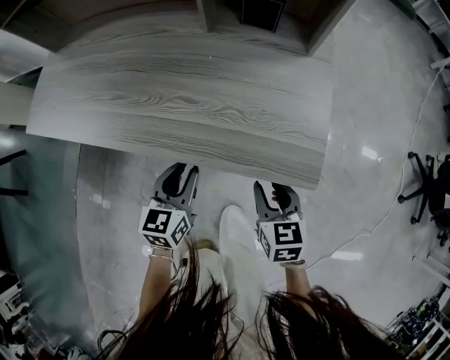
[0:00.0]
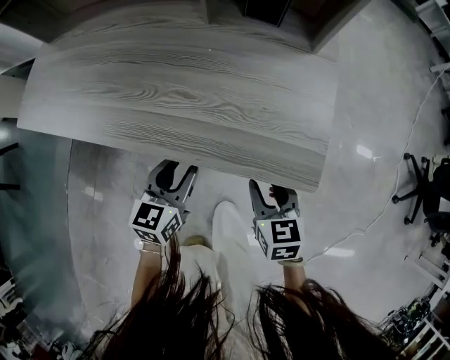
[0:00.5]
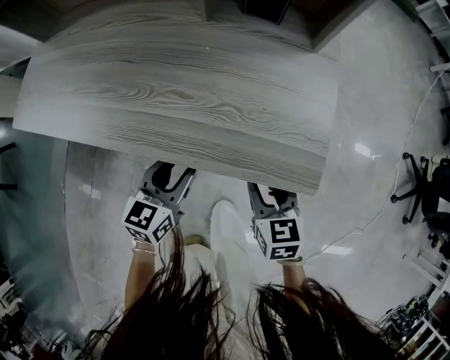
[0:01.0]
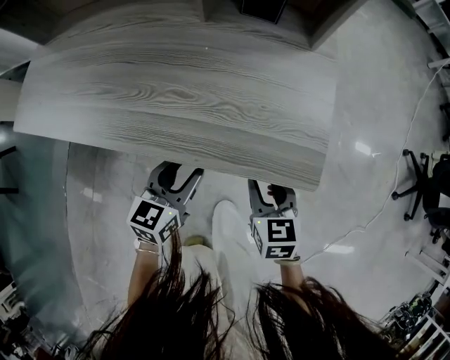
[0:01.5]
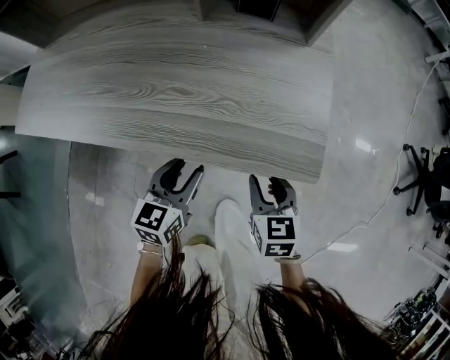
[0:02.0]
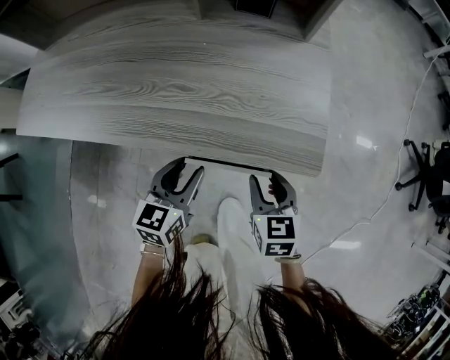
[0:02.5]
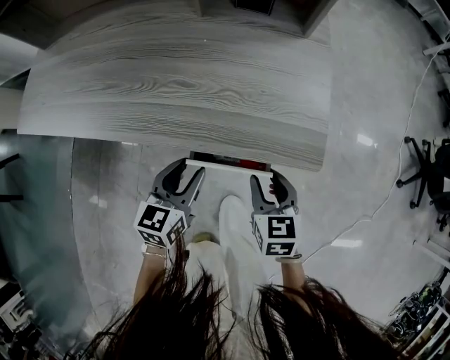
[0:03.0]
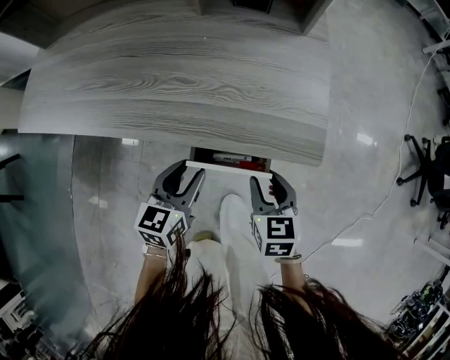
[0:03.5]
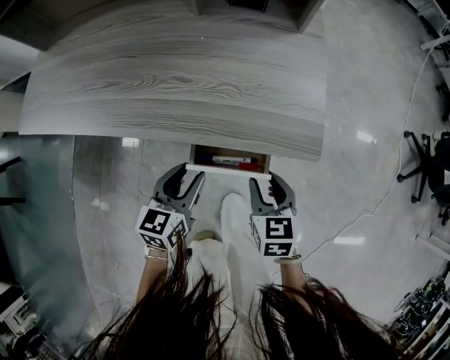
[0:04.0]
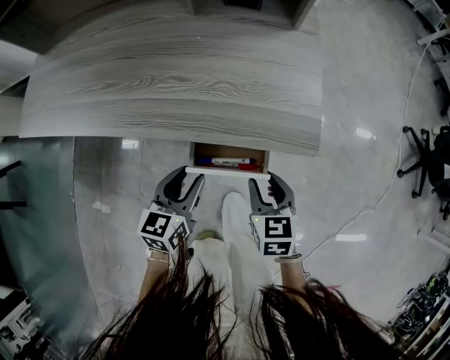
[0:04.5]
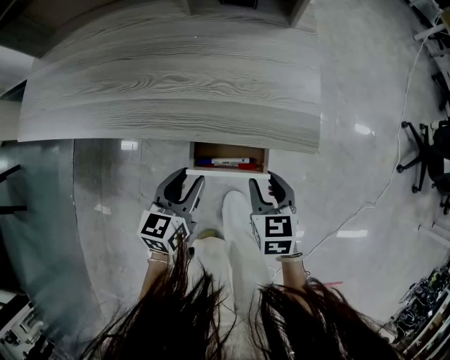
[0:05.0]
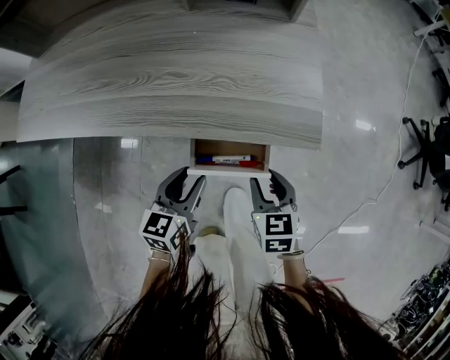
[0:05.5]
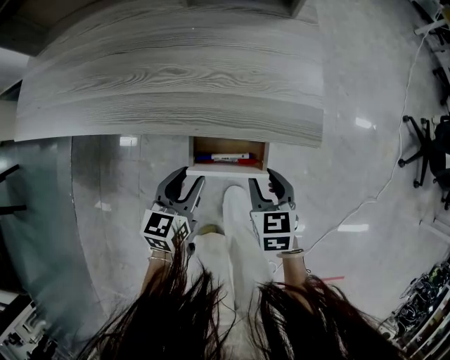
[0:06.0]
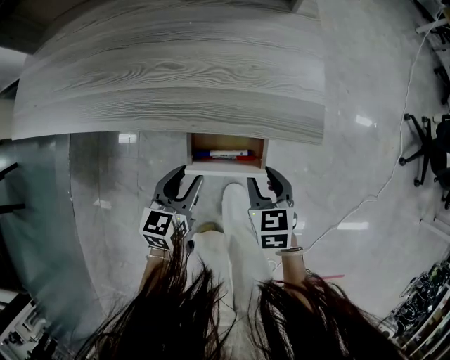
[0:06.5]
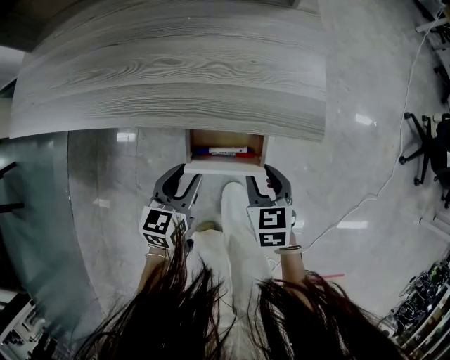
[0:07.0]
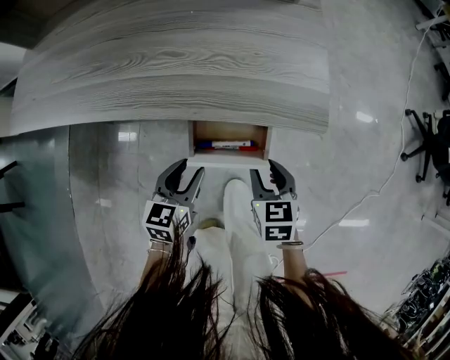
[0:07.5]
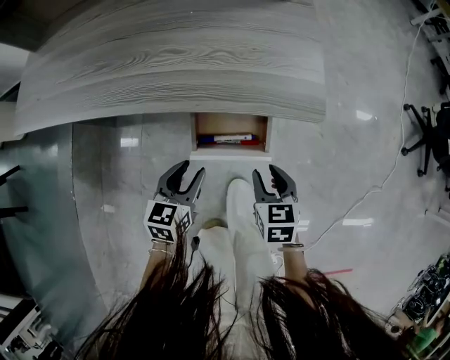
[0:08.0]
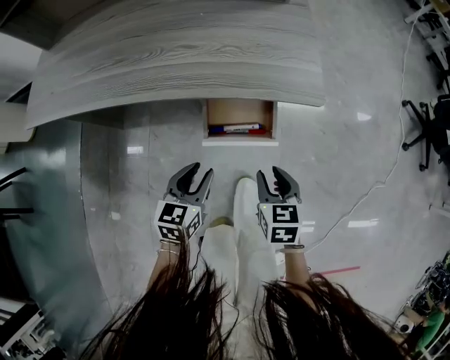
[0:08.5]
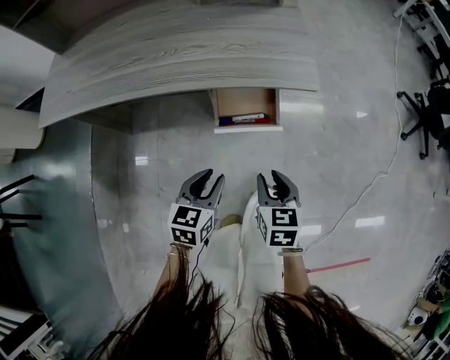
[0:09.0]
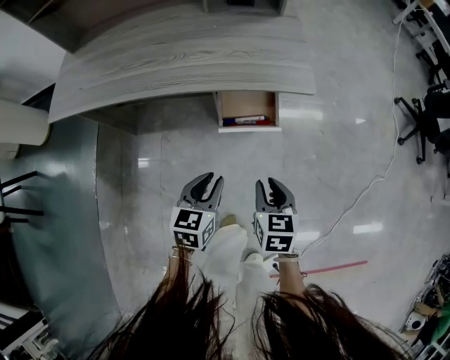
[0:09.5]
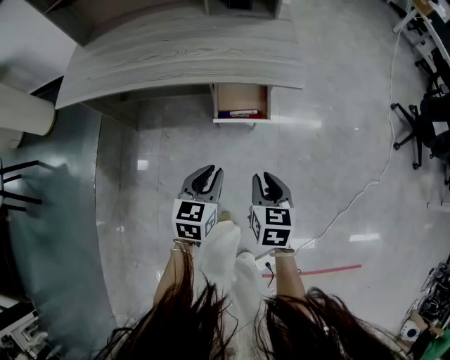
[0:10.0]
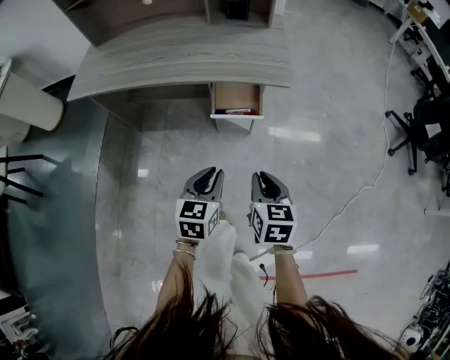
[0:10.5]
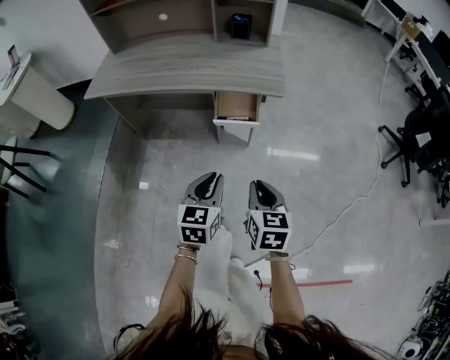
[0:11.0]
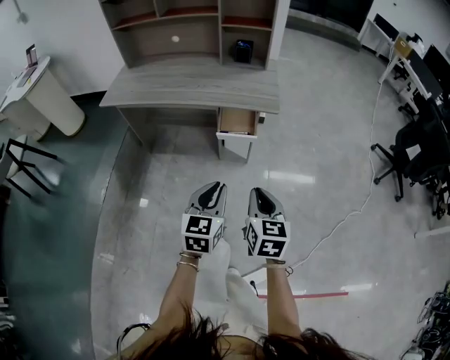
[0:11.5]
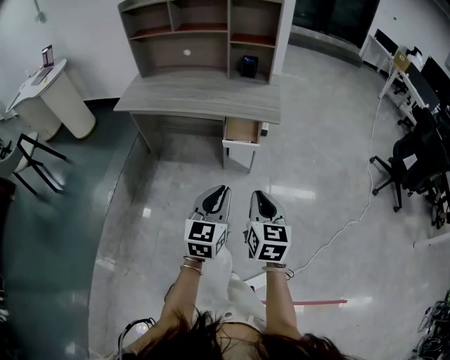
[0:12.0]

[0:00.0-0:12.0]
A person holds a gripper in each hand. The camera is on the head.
0:00.0 to 0:04.0: The grippers move only a little.
0:04.0 to 0:06.0: The grippers make only small movements.
0:06.0 to 0:08.0: The grippers stay close to where they were, moving slightly.
0:08.0 to 0:10.0: Both grippers travel together backward and upward, some 20 cm. The left gripper closes up.
0:10.0 to 0:12.0: The two grippers go about 30 cm upward and backward. The right gripper swivels roughly 20 degrees. The left gripper changes its angle by approximately 20 degrees.

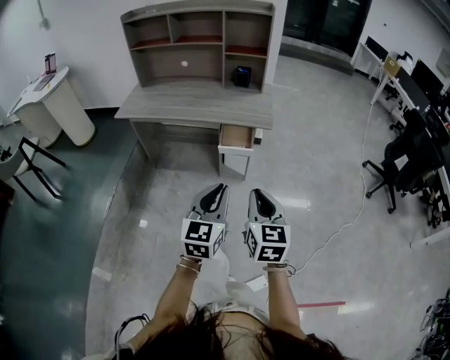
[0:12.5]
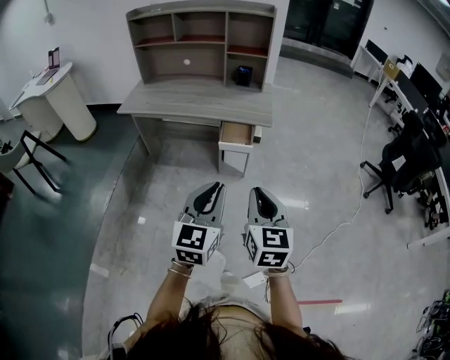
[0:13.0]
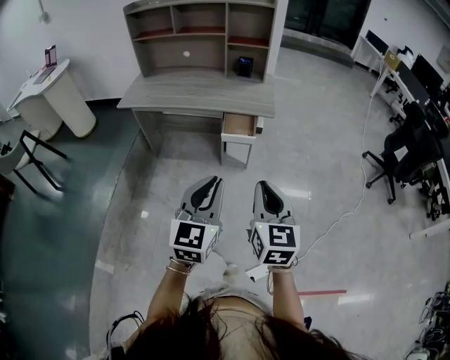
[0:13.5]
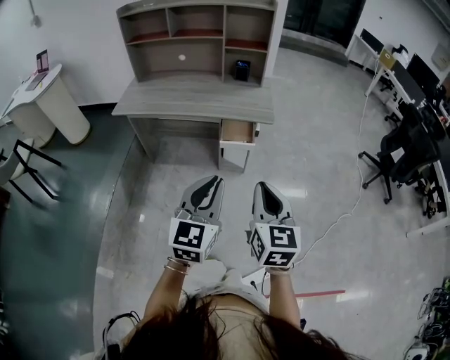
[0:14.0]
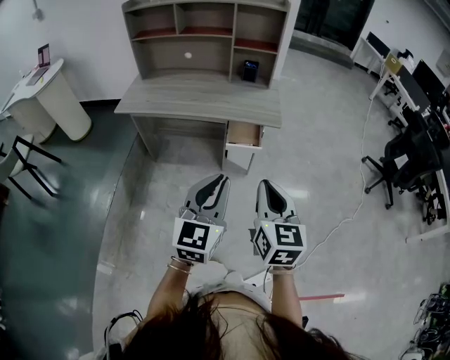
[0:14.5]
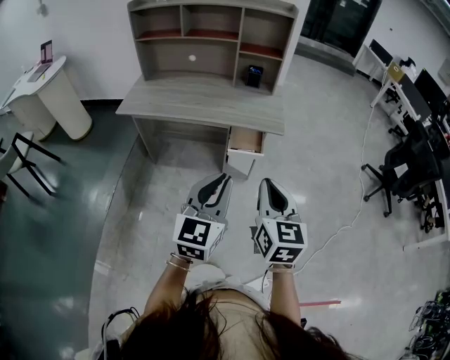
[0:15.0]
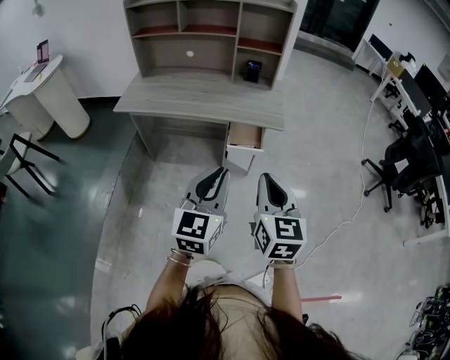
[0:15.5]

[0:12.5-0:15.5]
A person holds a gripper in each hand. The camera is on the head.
0:12.5 to 0:14.0: The two grippers go roughly 5 cm upward.
0:14.0 to 0:15.5: The two grippers go some 5 cm forward.

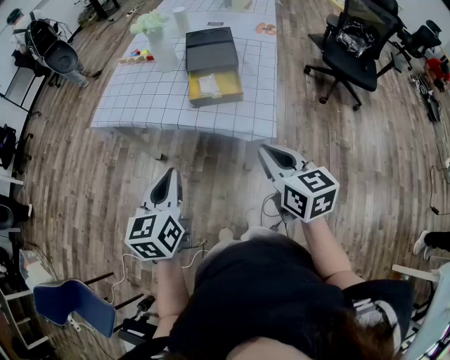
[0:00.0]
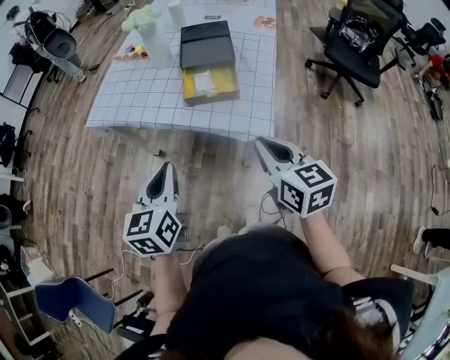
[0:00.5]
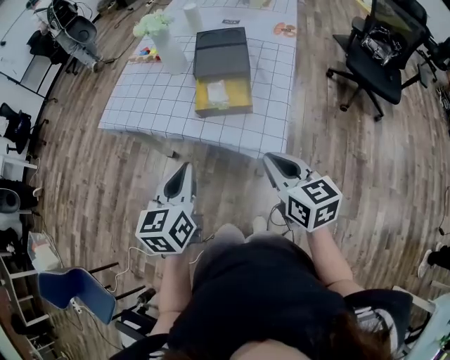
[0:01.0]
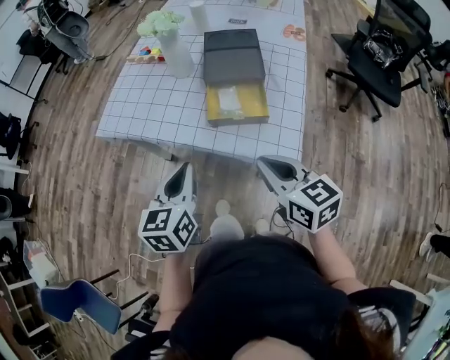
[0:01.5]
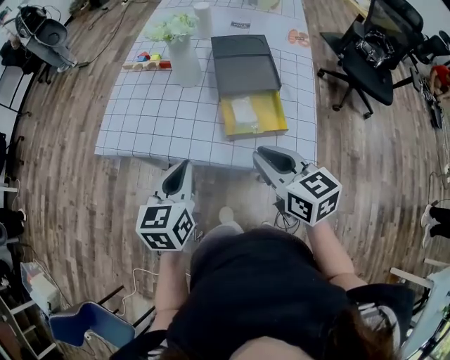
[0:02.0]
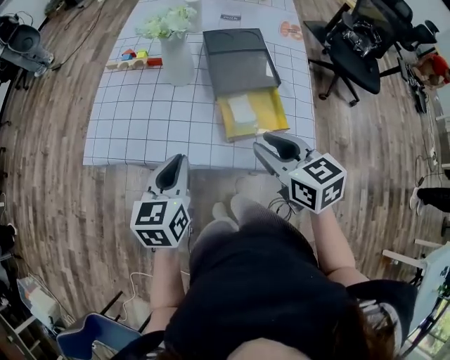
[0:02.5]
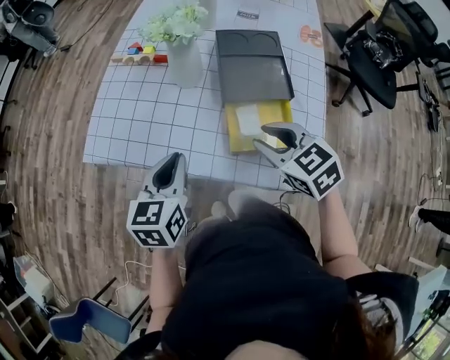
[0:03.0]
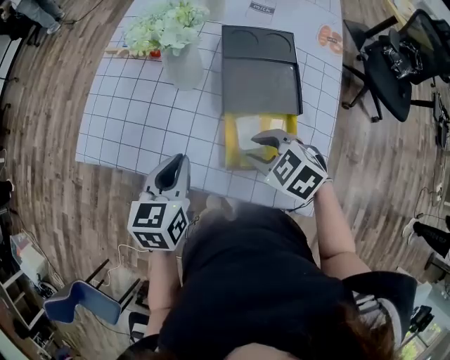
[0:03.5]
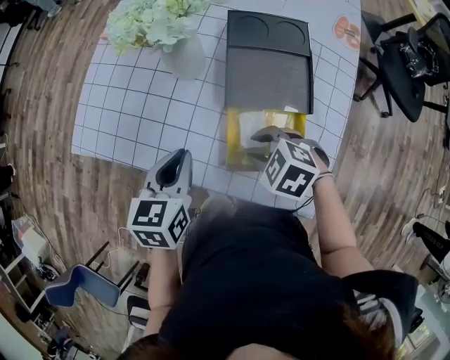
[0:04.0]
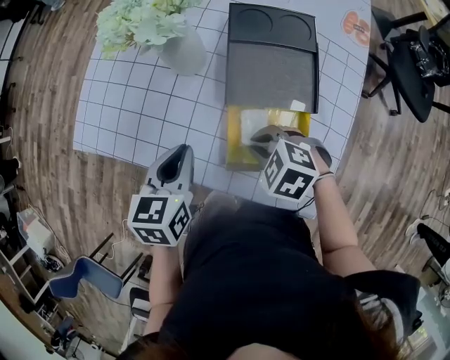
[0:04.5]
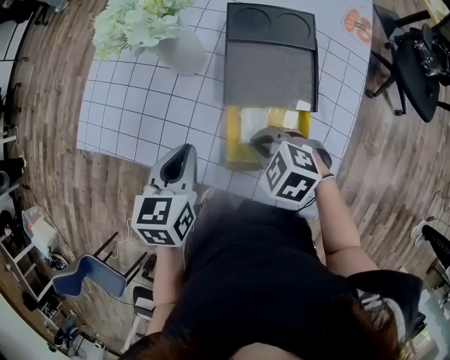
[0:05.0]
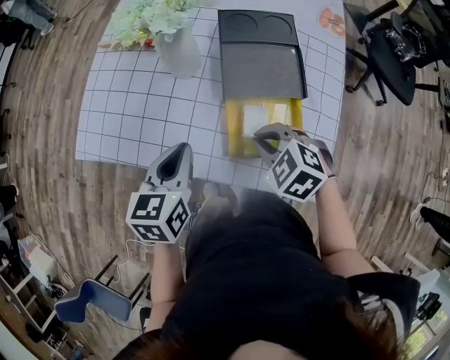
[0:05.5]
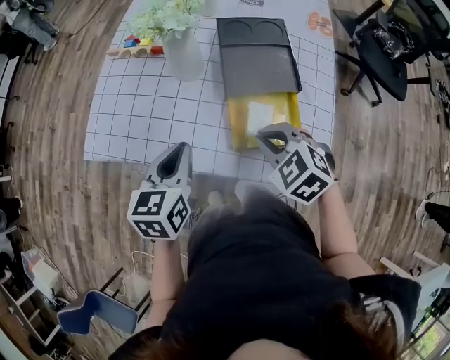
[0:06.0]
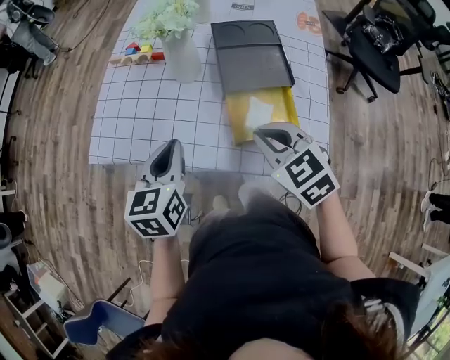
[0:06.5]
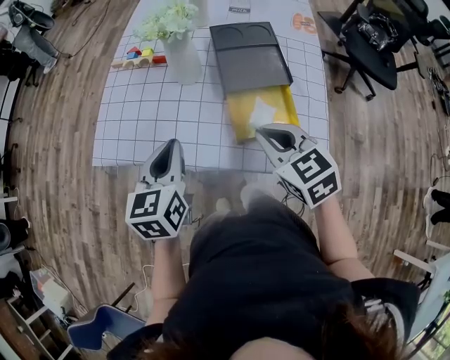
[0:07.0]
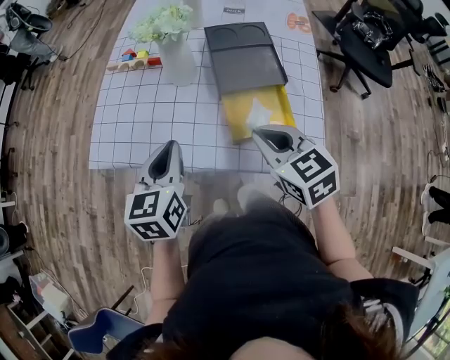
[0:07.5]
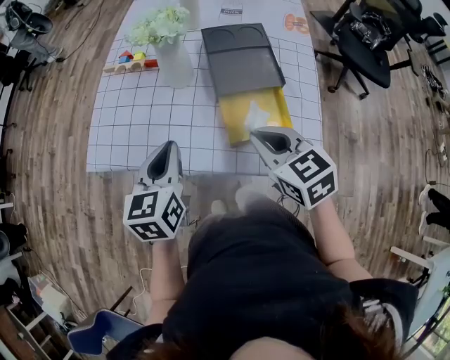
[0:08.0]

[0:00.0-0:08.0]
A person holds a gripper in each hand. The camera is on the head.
0:00.0 to 0:02.0: The left gripper travels forward by about 25 cm, while the right gripper goes roughly 25 cm forward and to the left.
0:02.0 to 0:04.0: The right gripper goes about 15 cm downward, tilts its fingers roughly 40 degrees downward, and opens. The left gripper shifts by roughly 15 cm.
0:04.0 to 0:06.0: The right gripper shifts approximately 10 cm upward, swivels some 30 degrees, and closes. Meanwhile the left gripper changes place by roughly 5 cm.
0:06.0 to 0:08.0: The right gripper moves upward, roughly 5 cm, and swivels approximately 30 degrees.

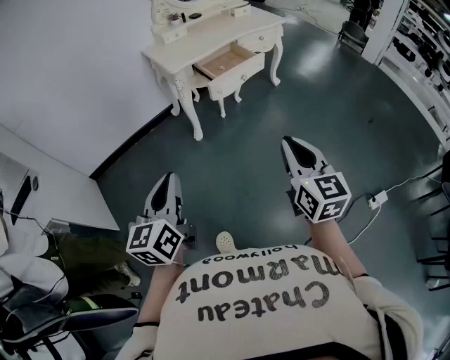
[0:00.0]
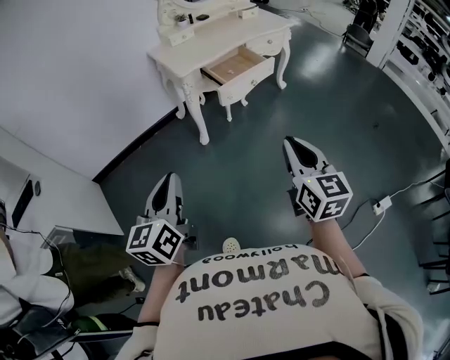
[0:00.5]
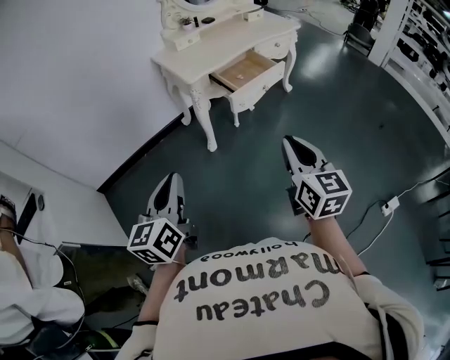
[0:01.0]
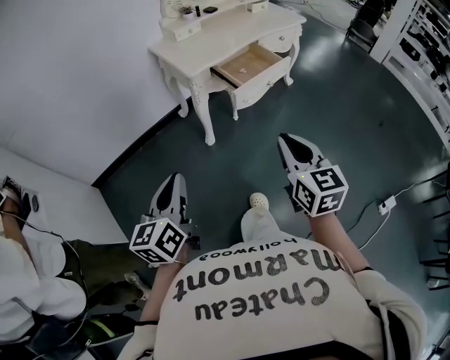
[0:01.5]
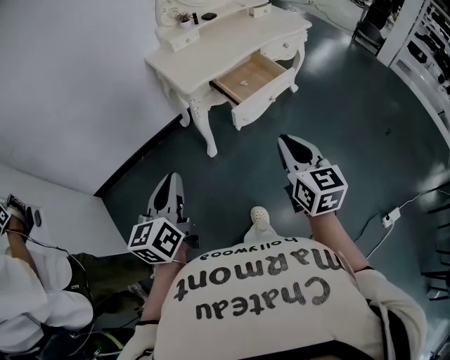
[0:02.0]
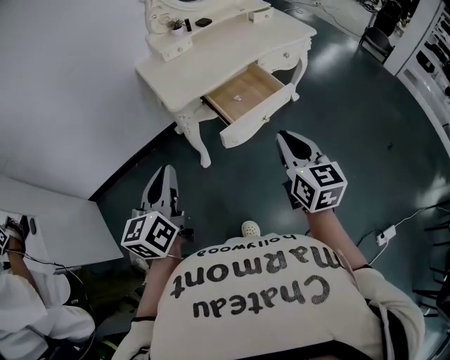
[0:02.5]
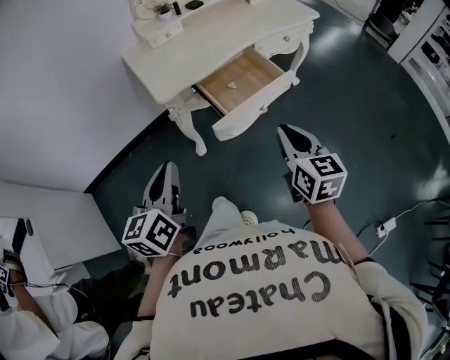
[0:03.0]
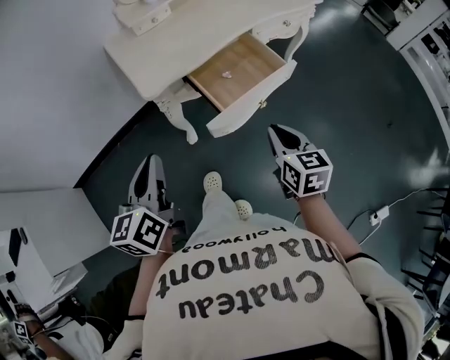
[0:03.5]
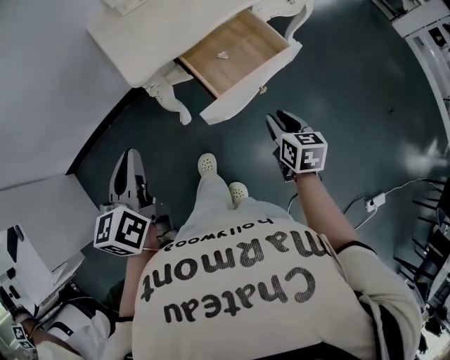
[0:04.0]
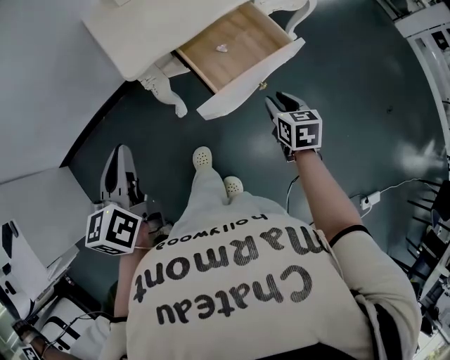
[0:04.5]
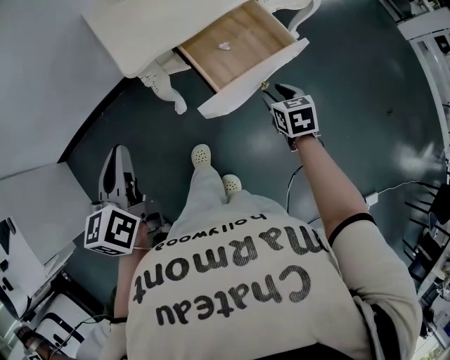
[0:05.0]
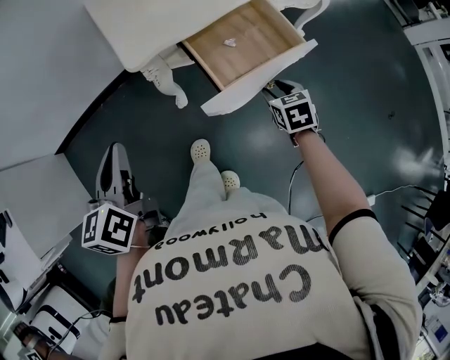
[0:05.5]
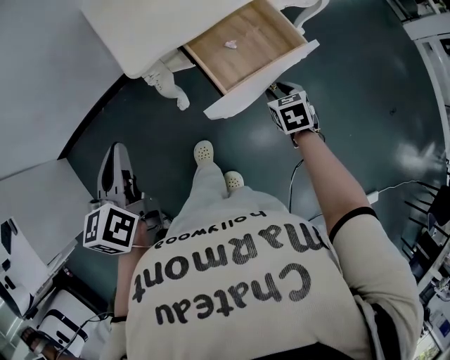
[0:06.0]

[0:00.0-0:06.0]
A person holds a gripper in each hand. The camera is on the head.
0:00.0 to 0:02.0: The two grippers go about 25 cm forward.
0:02.0 to 0:04.0: The left gripper moves forward, approximately 25 cm, while the right gripper is displaced forward, downward and to the right by roughly 35 cm, rotates some 30 degrees, and opens up.
0:04.0 to 0:06.0: The right gripper moves forward and downward, about 10 cm, and changes its angle by about 30 degrees; the left gripper changes place by roughly 5 cm.
